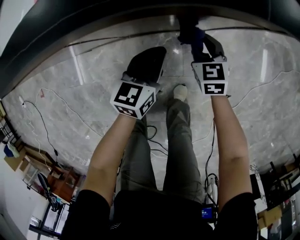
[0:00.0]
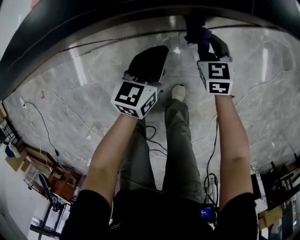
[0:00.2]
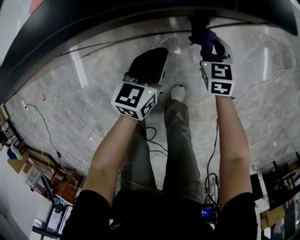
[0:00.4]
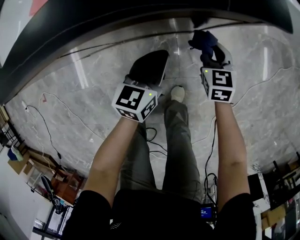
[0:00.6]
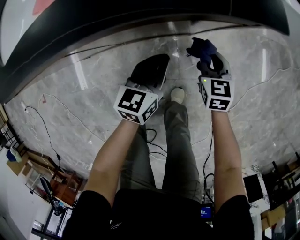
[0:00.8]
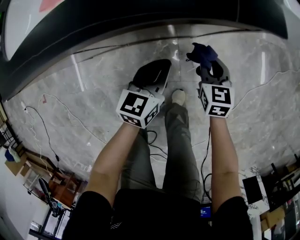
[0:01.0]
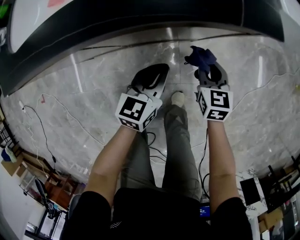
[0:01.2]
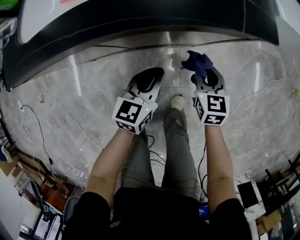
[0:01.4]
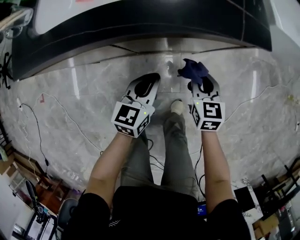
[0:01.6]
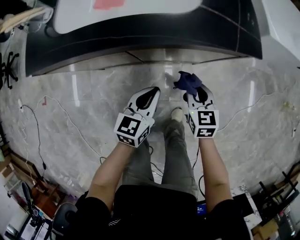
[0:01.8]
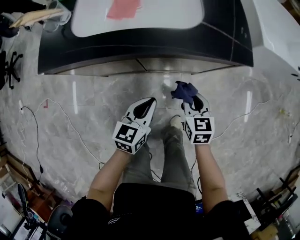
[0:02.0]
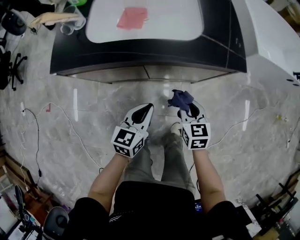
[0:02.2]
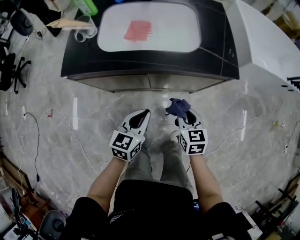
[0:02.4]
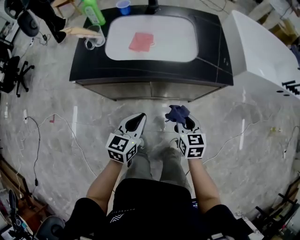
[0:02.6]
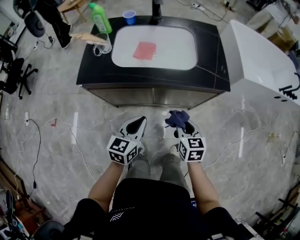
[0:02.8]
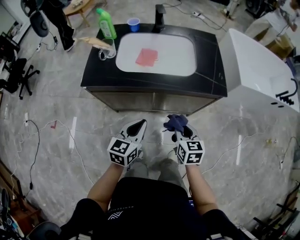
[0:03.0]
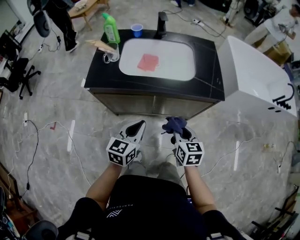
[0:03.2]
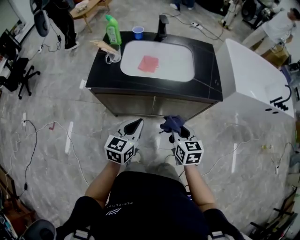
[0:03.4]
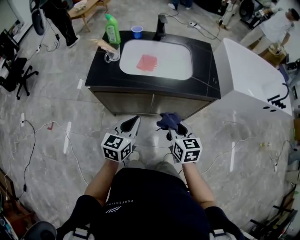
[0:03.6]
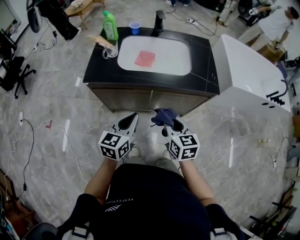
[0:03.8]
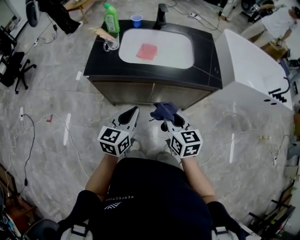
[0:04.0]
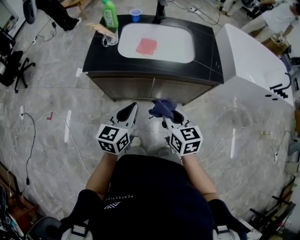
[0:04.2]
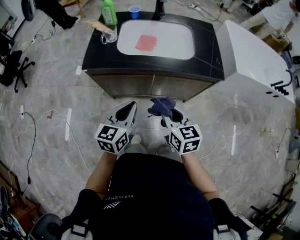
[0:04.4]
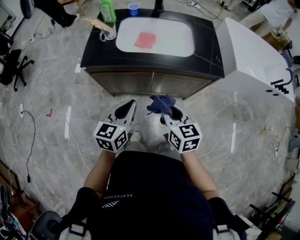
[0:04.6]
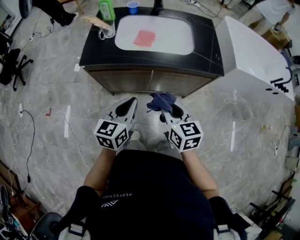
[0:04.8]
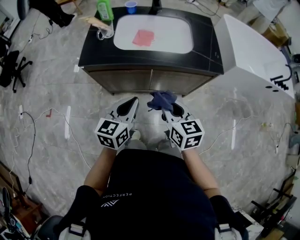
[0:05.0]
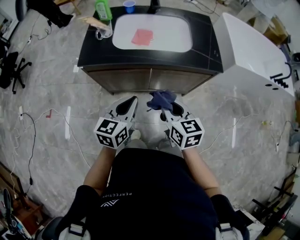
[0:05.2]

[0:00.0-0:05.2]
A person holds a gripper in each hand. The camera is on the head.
0.0 to 1.8 s: The left gripper moves upward, backward and to the left, about 15 cm. Meanwhile the right gripper travels upward and backward by roughly 15 cm.
1.8 to 3.4 s: The grippers both shift upward and to the left by approximately 25 cm.
3.4 to 5.2 s: The right gripper moves to the left, about 5 cm.

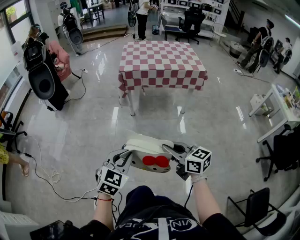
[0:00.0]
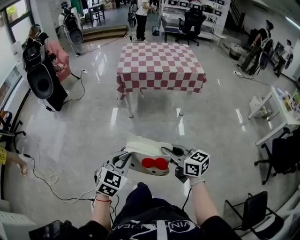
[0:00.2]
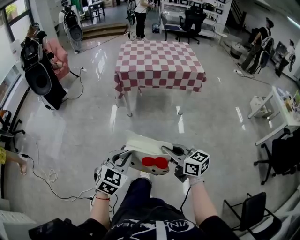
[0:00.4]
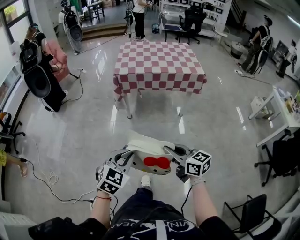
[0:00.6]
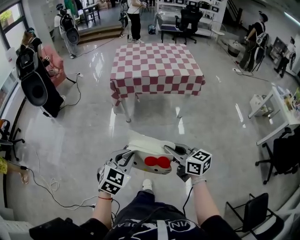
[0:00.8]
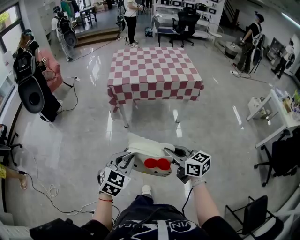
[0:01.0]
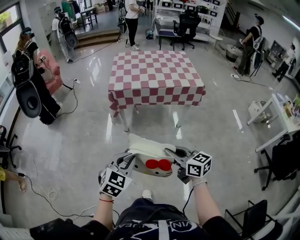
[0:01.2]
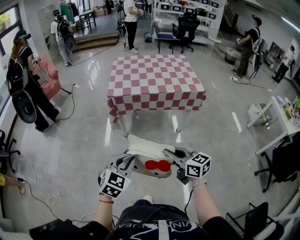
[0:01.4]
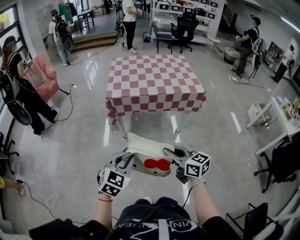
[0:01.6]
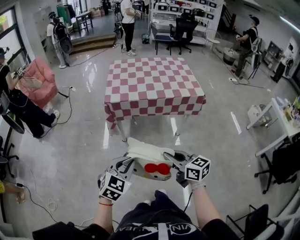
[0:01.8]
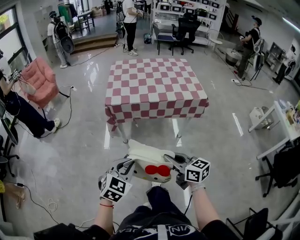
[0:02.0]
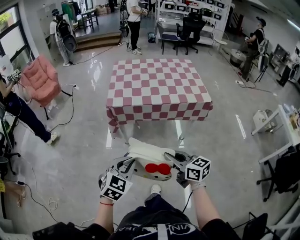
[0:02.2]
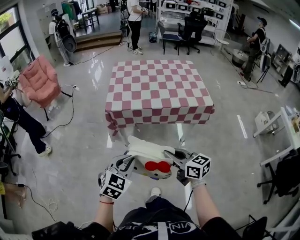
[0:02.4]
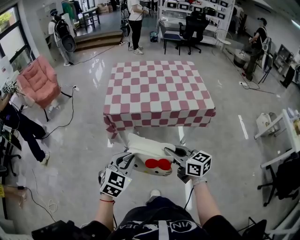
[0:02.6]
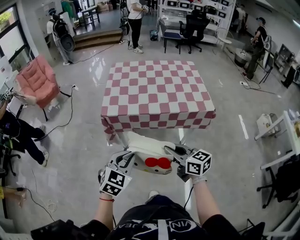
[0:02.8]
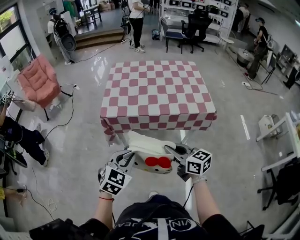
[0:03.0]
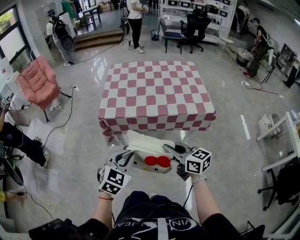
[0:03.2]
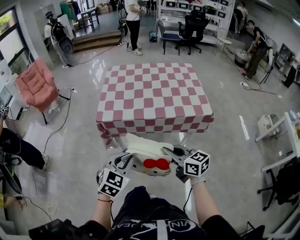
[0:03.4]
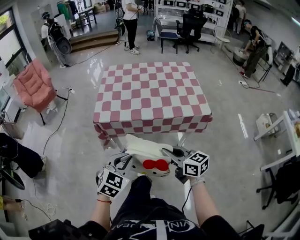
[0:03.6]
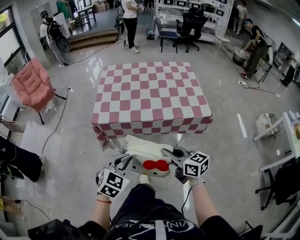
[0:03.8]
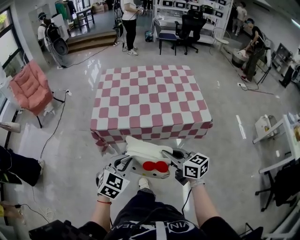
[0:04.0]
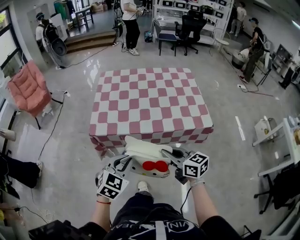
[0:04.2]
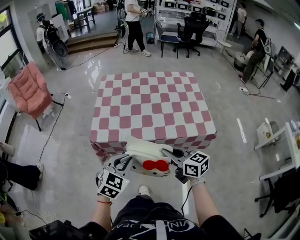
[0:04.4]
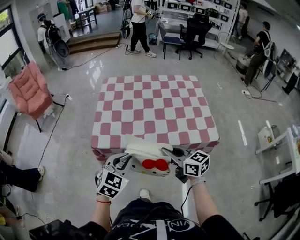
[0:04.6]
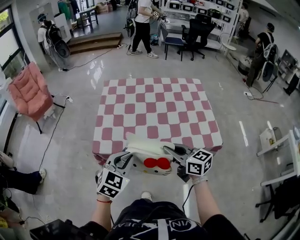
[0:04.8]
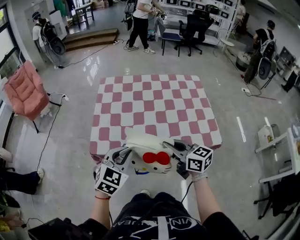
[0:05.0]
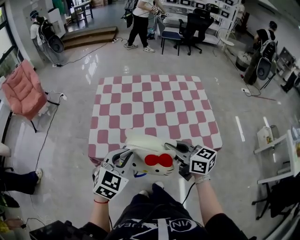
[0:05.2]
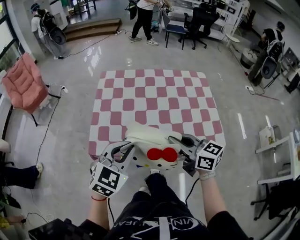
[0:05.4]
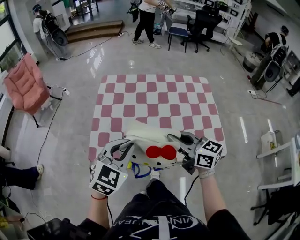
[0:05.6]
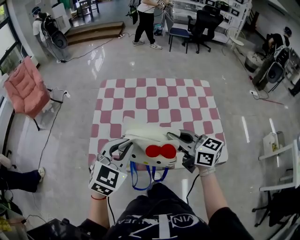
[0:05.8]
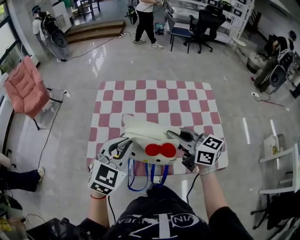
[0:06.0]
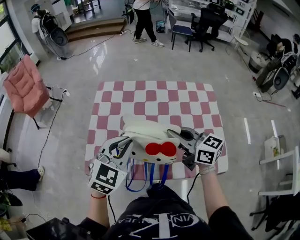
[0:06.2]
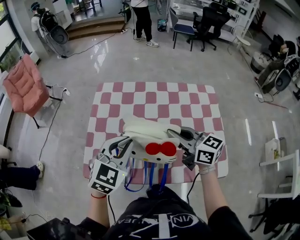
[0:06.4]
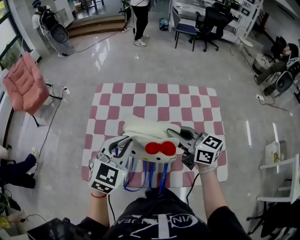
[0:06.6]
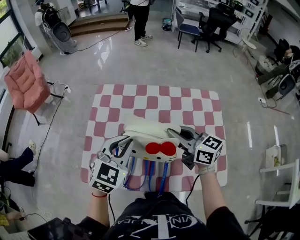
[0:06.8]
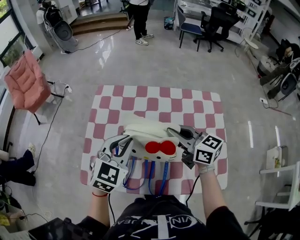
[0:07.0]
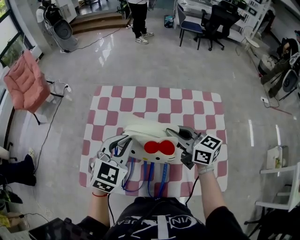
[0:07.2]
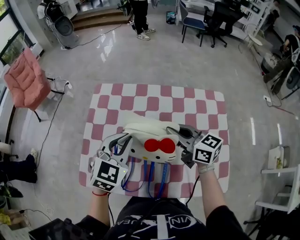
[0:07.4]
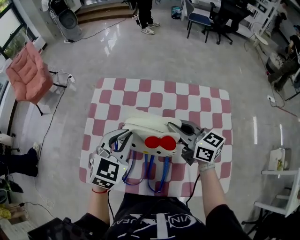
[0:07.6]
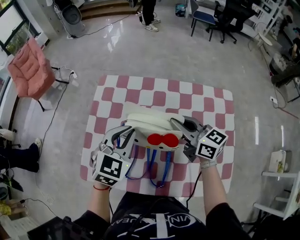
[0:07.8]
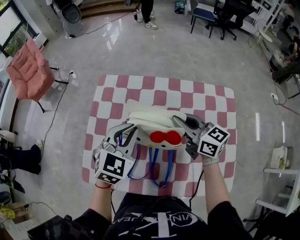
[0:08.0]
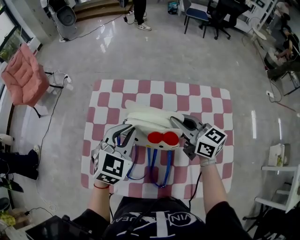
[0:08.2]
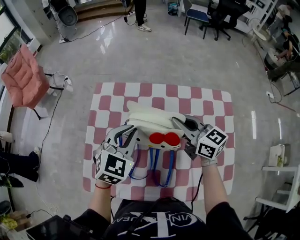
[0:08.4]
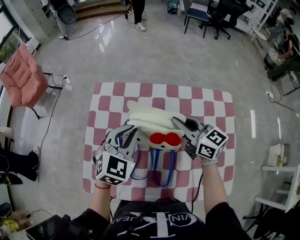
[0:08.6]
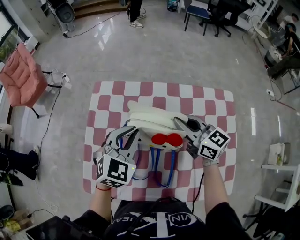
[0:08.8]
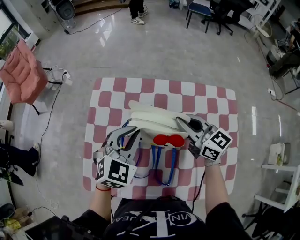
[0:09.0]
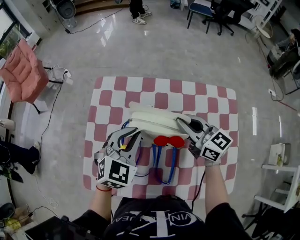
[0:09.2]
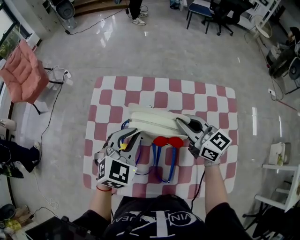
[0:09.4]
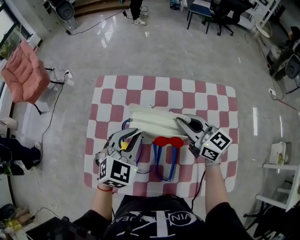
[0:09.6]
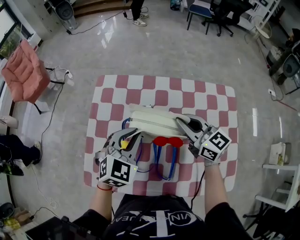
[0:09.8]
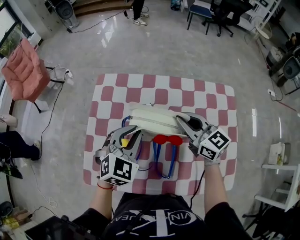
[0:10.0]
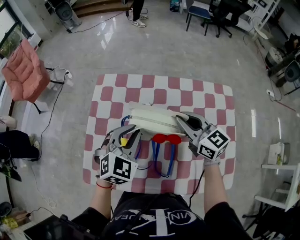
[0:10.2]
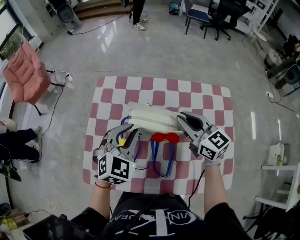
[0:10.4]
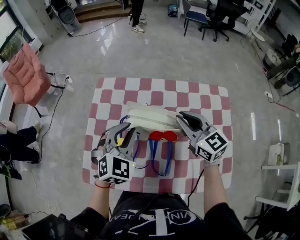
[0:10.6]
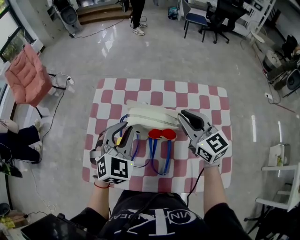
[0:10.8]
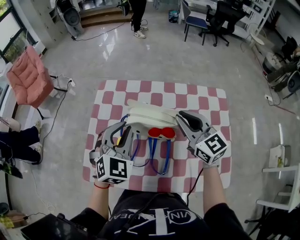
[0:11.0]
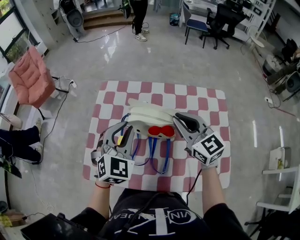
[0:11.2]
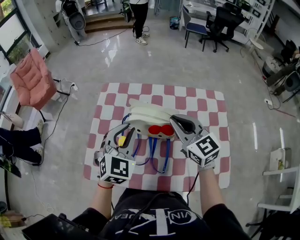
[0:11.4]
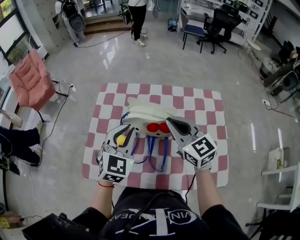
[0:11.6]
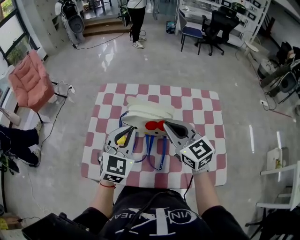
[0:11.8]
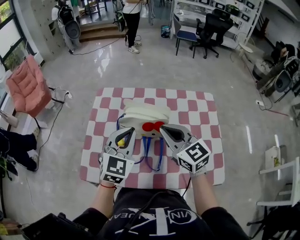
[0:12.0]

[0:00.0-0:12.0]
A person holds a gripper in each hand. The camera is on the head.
0.0 to 1.6 s: Both grippers travel together forward, about 25 cm.
1.6 to 3.0 s: Both grippers move forward, about 20 cm.
3.0 to 4.4 s: The two grippers go about 15 cm forward.
4.4 to 6.0 s: The two grippers go some 25 cm forward.
6.0 to 7.6 s: The two grippers go about 15 cm forward.
7.6 to 9.0 s: Both grippers travel together forward, approximately 5 cm.
9.0 to 10.4 s: The grippers make only small movements.
10.4 to 12.0 s: The right gripper is displaced backward by about 10 cm. Meanwhile the left gripper heads backward and upward, covering approximately 10 cm.

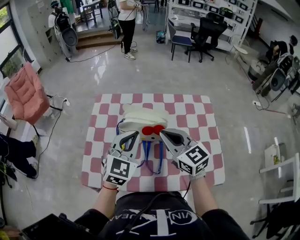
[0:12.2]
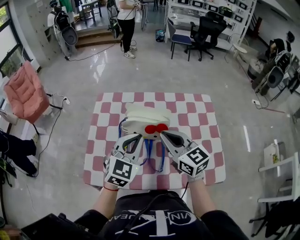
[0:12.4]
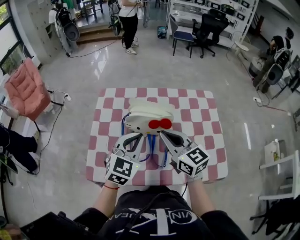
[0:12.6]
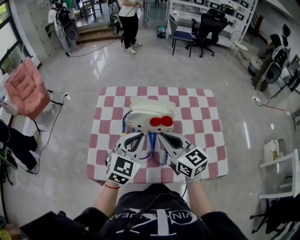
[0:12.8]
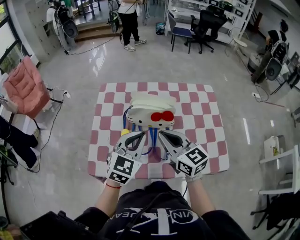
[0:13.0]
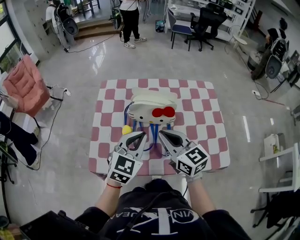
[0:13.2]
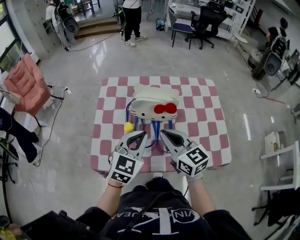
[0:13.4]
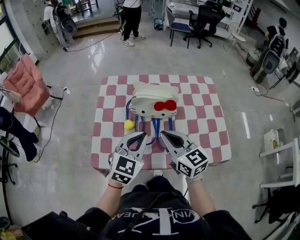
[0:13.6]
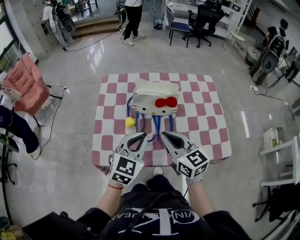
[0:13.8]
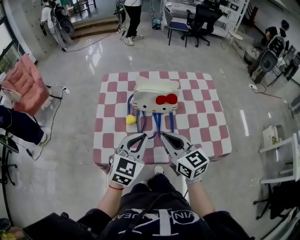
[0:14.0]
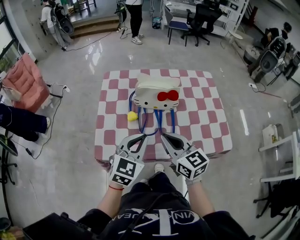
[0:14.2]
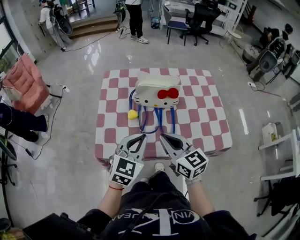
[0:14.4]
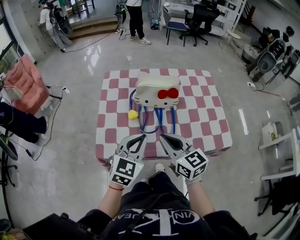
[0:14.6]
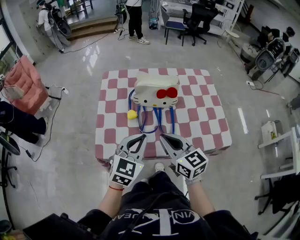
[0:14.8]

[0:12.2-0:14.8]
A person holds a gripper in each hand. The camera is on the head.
12.2 to 13.4 s: The left gripper goes approximately 5 cm backward; the right gripper travels backward and to the left by roughly 10 cm.
13.4 to 14.8 s: Both grippers travel together backward, approximately 10 cm.

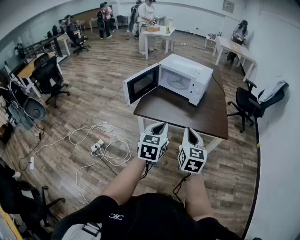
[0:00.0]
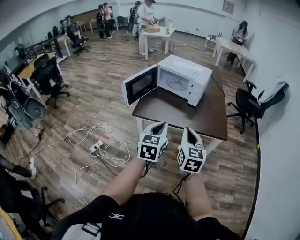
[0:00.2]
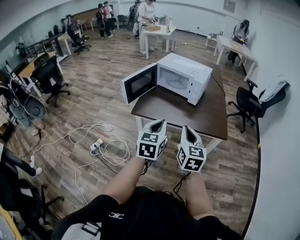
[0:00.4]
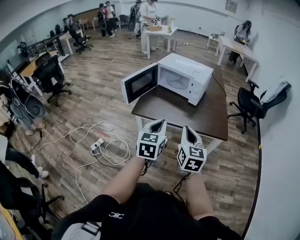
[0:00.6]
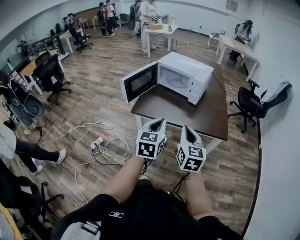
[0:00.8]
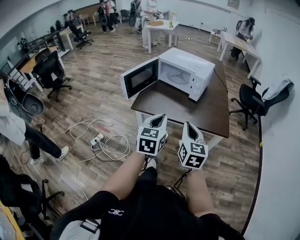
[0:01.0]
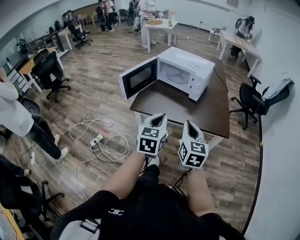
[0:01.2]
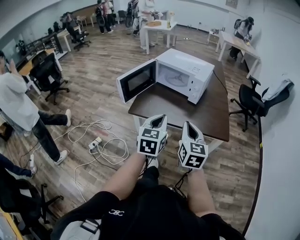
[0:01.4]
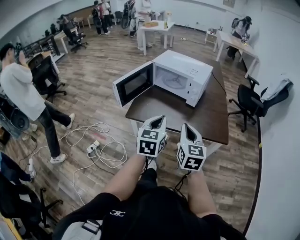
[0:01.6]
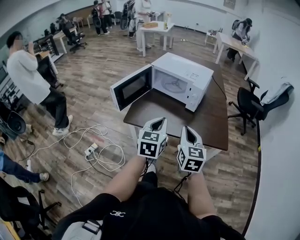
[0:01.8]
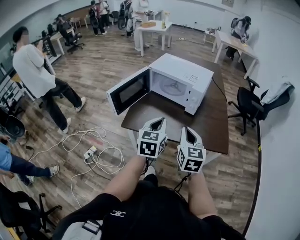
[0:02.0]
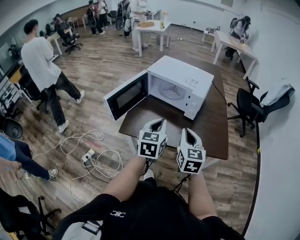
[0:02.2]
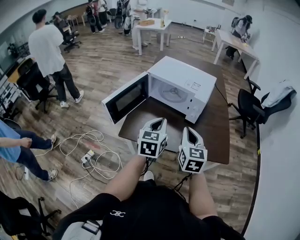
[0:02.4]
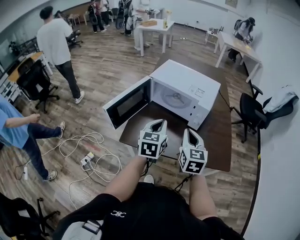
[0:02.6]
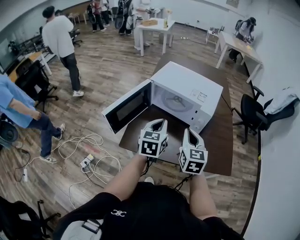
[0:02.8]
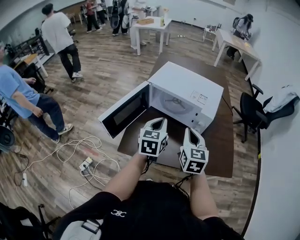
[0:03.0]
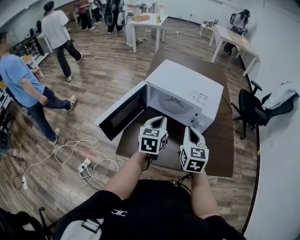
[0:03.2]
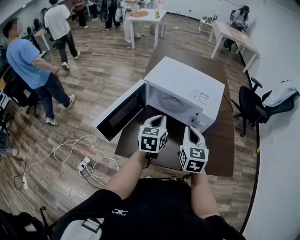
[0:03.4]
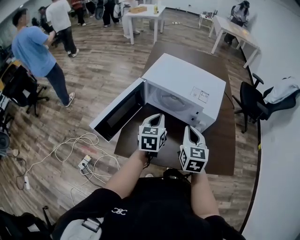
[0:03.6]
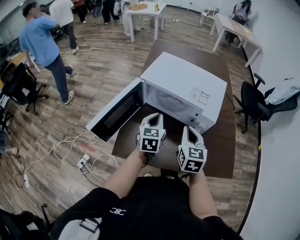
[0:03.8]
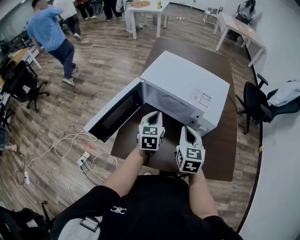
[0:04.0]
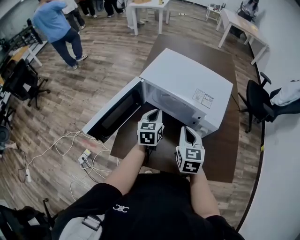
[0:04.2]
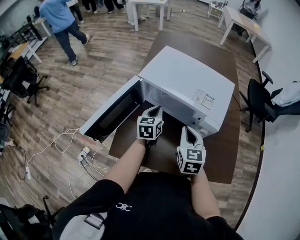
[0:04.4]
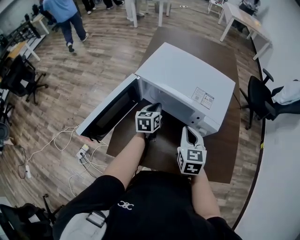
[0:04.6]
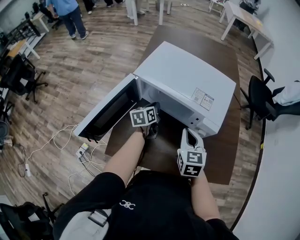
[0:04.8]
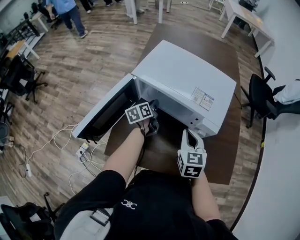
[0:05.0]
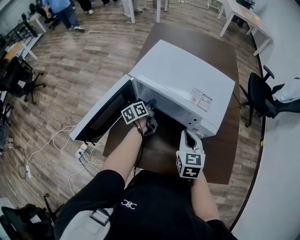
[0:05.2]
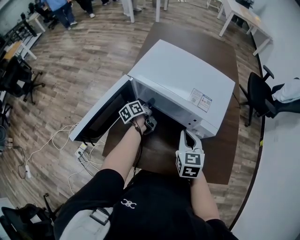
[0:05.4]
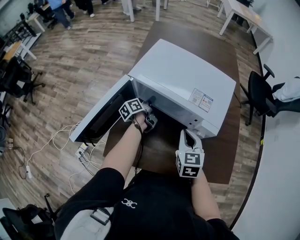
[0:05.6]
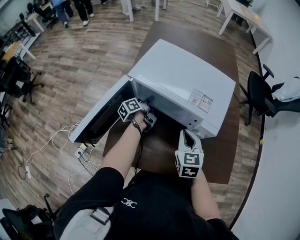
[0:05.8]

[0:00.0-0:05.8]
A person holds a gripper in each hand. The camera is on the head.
0.0 to 1.4 s: Both grippers travel together forward, some 5 cm.
1.4 to 2.8 s: Both grippers travel together forward, about 30 cm.
2.8 to 4.4 s: The left gripper heads forward and downward, covering roughly 25 cm. The right gripper shifts about 15 cm forward and downward.
4.4 to 5.8 s: The left gripper moves downward and forward, some 15 cm, twists approximately 60 degrees counterclockwise, seen from behind, and opens its fingers.
